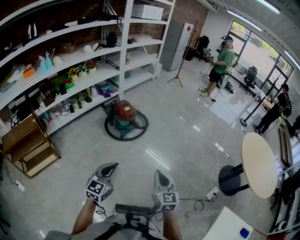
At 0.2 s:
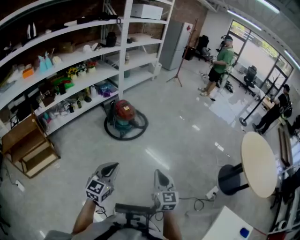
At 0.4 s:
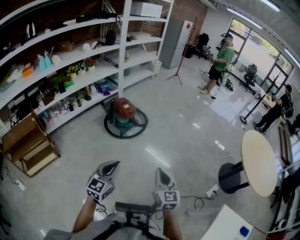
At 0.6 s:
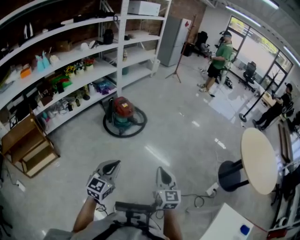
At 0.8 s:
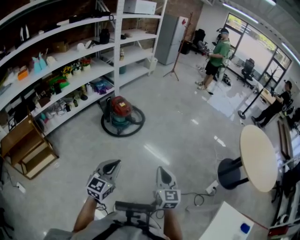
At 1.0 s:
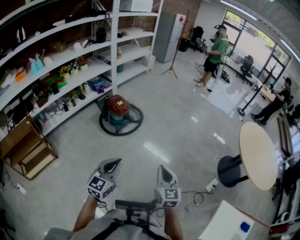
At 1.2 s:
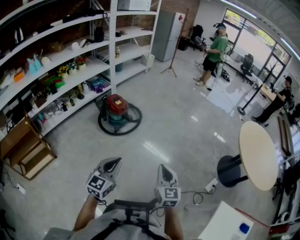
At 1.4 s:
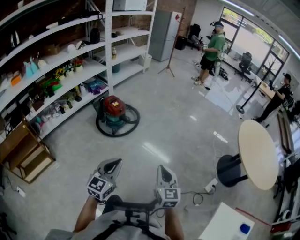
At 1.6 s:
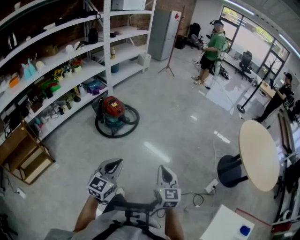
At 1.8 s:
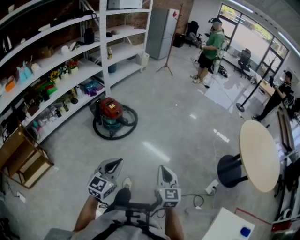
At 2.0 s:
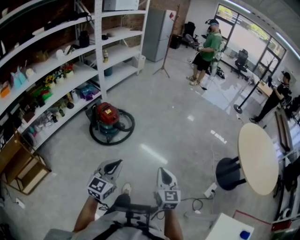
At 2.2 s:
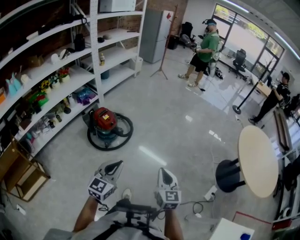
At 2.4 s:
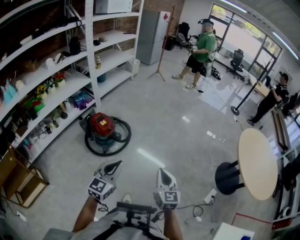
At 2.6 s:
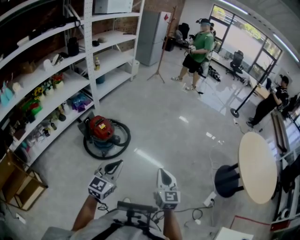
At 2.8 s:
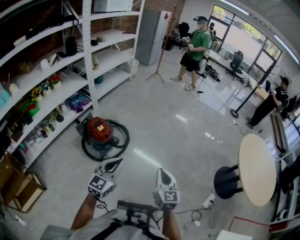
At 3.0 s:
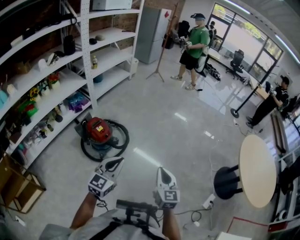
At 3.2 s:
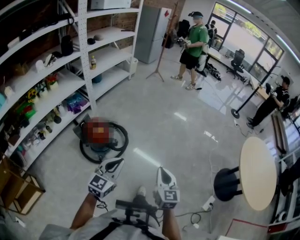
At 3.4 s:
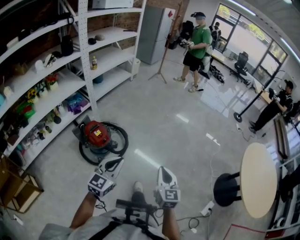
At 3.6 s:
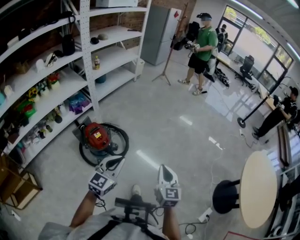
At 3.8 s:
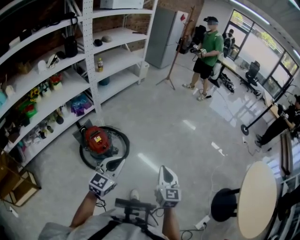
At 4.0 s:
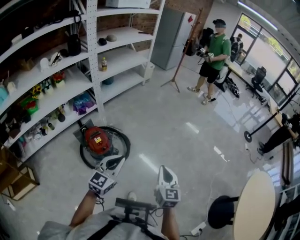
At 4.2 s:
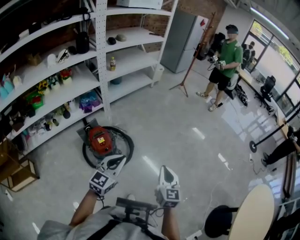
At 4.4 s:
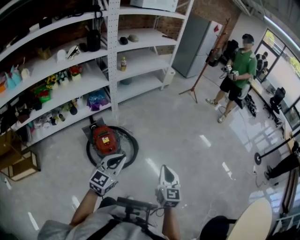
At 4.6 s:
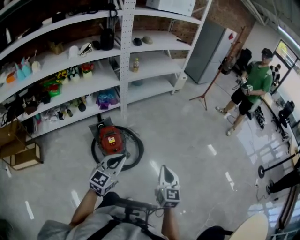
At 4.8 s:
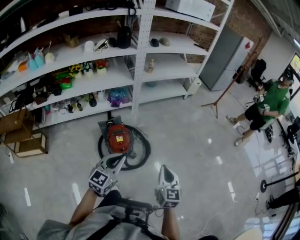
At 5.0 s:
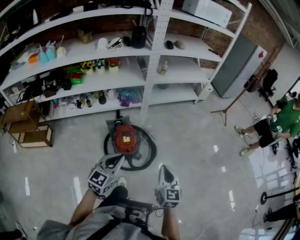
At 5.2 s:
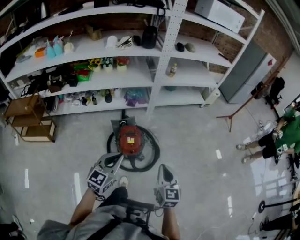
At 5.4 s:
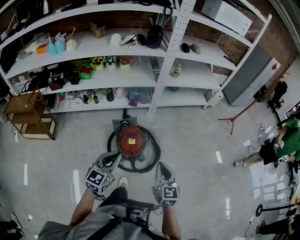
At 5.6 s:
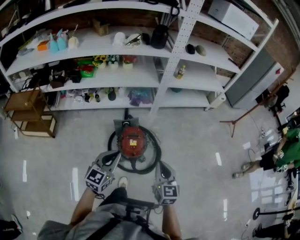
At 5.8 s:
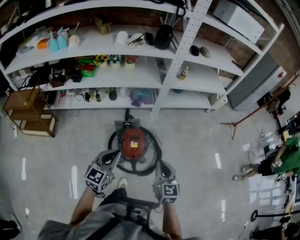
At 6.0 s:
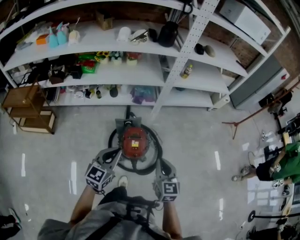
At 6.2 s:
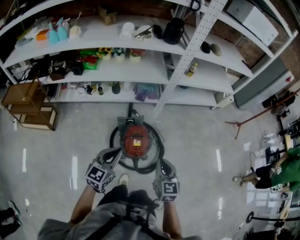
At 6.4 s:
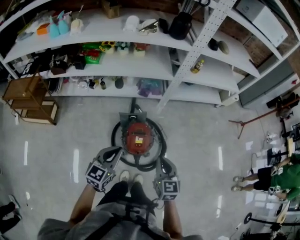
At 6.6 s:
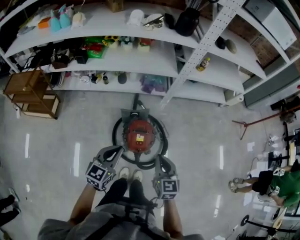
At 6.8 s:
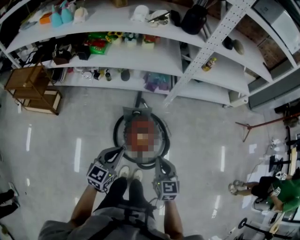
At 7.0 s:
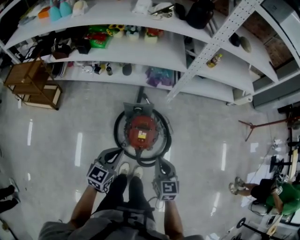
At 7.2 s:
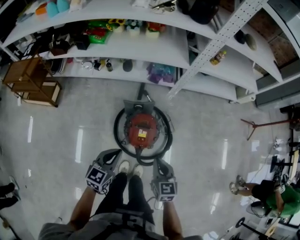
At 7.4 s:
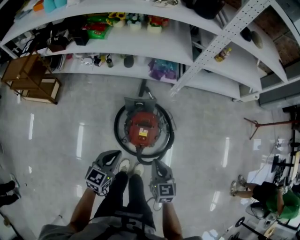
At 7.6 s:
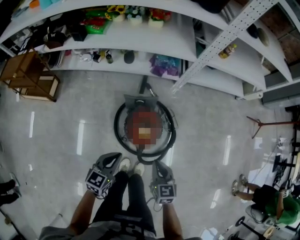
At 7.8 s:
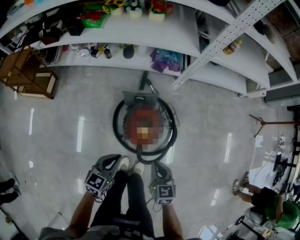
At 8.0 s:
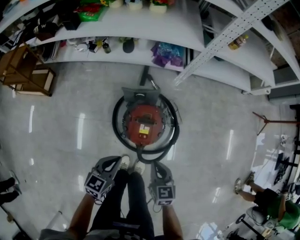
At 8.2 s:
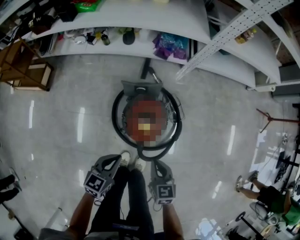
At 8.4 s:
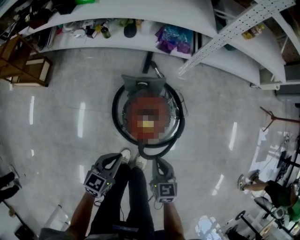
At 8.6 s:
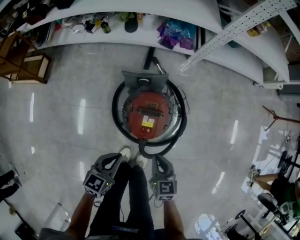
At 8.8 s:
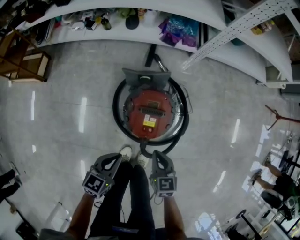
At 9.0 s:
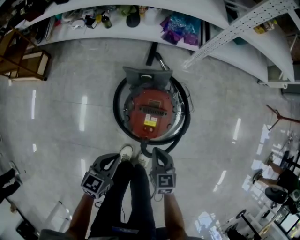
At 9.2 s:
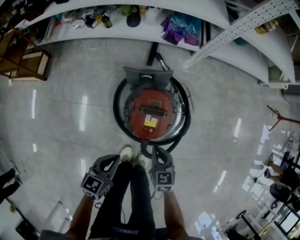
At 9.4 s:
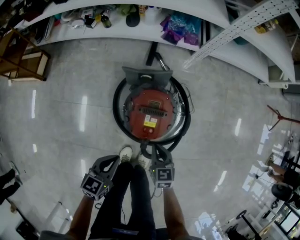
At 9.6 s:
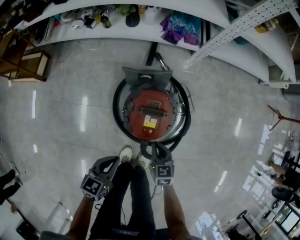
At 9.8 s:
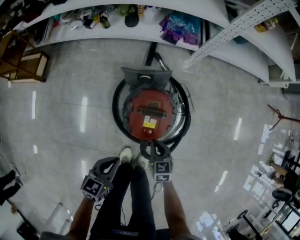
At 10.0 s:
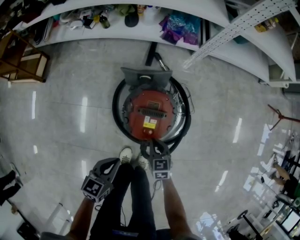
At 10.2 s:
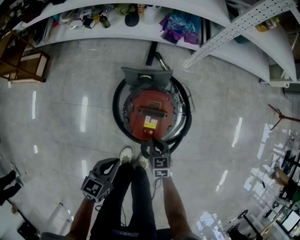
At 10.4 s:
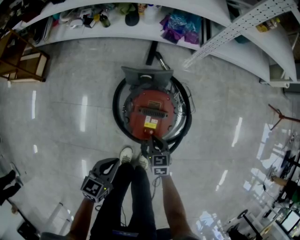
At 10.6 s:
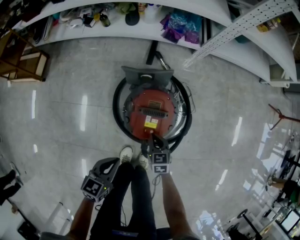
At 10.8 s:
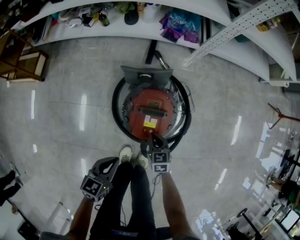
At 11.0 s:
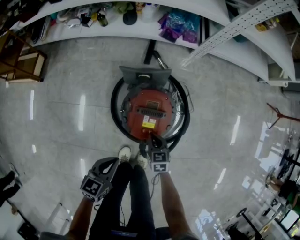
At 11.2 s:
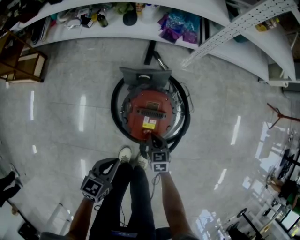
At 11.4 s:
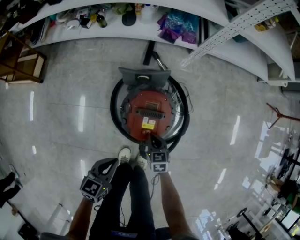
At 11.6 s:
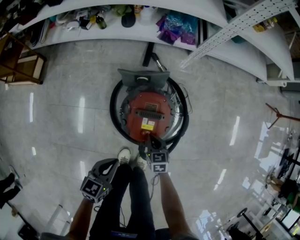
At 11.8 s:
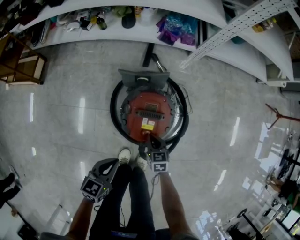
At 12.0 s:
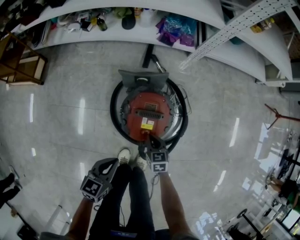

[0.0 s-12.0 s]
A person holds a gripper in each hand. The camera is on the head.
0.0 to 1.6 s: The grippers both shift to the right and forward by some 15 cm.
1.6 to 3.0 s: The two grippers go about 35 cm forward.
3.0 to 4.4 s: The grippers both shift forward by approximately 30 cm. The left gripper swivels about 20 degrees.
4.4 to 6.0 s: The left gripper shifts by approximately 30 cm, and swivels about 30 degrees. Meanwhile the right gripper shifts by roughly 35 cm, and changes its angle by about 30 degrees.
6.0 to 7.6 s: The left gripper shifts roughly 20 cm downward, and rotates roughly 20 degrees; the right gripper goes about 25 cm downward and forward, and turns by some 20 degrees.
7.6 to 9.0 s: Both grippers move downward, about 25 cm.
9.0 to 10.4 s: The right gripper travels downward by some 10 cm.
10.4 to 12.0 s: There are only small adjustments of the grippers.

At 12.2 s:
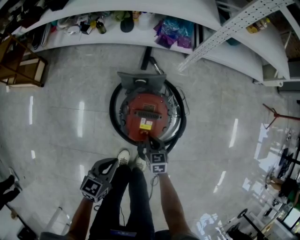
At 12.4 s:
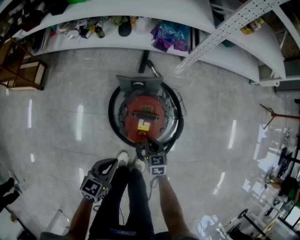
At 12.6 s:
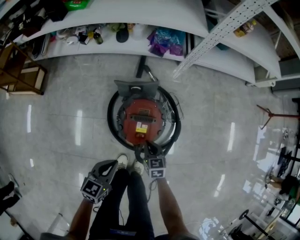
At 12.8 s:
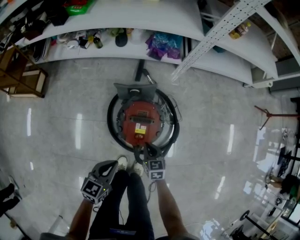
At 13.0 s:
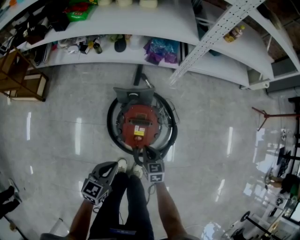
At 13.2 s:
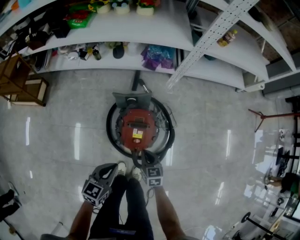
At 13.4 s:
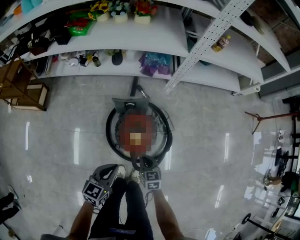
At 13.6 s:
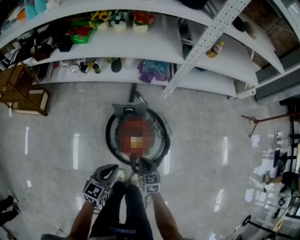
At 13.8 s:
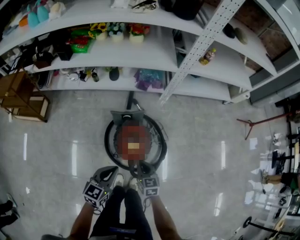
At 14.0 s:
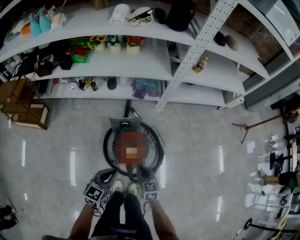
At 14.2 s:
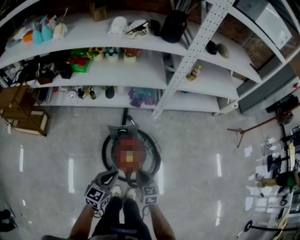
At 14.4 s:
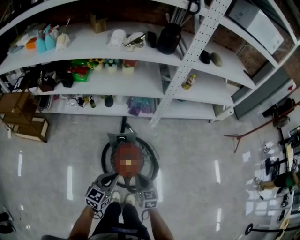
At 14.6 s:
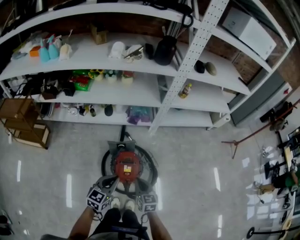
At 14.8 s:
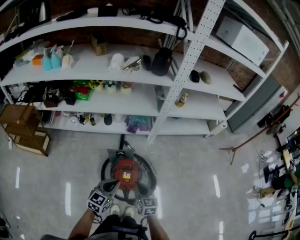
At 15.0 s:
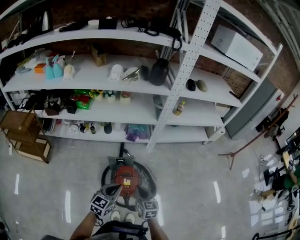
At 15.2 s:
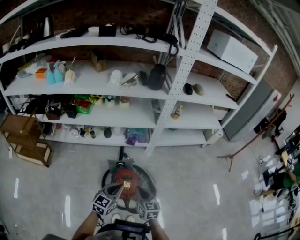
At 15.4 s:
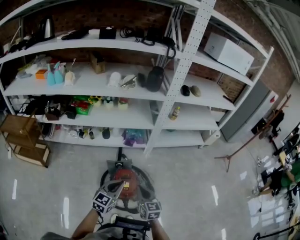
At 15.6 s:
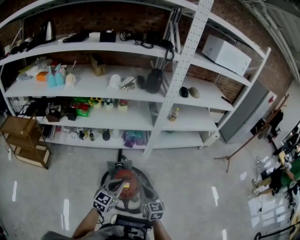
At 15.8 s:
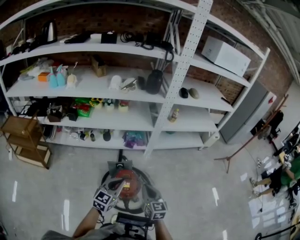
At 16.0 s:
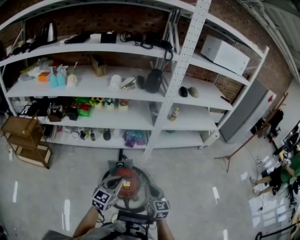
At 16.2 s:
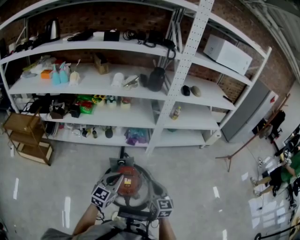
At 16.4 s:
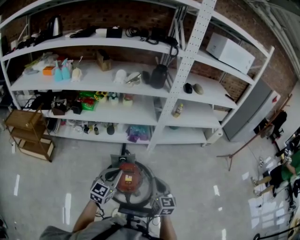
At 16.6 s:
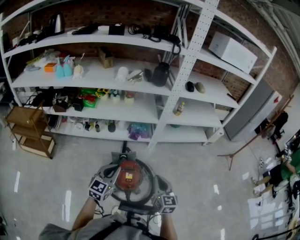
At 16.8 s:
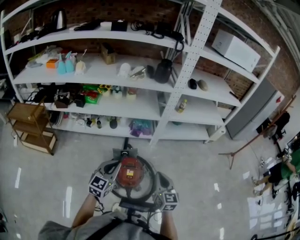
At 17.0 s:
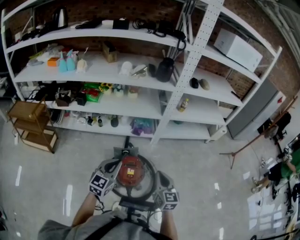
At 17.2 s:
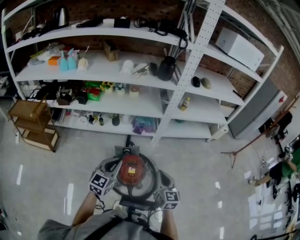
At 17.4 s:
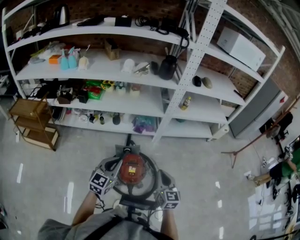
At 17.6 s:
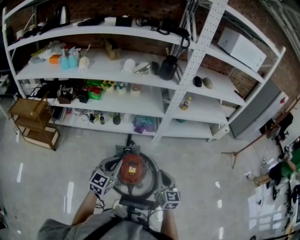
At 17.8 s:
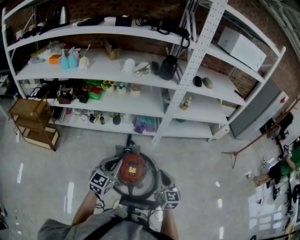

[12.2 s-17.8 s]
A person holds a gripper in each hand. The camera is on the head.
12.2 to 13.6 s: Both grippers travel together upward, roughly 20 cm.
13.6 to 15.0 s: Both grippers travel together upward, roughly 25 cm.
15.0 to 16.4 s: The right gripper heads upward and to the right, covering some 15 cm. The left gripper travels upward by approximately 10 cm.
16.4 to 17.8 s: The grippers move only a little.

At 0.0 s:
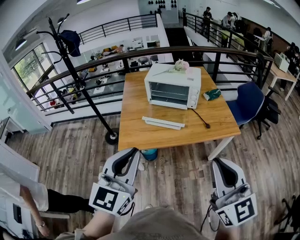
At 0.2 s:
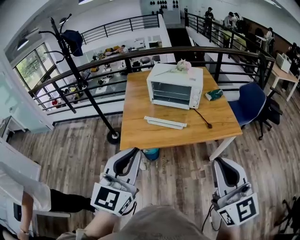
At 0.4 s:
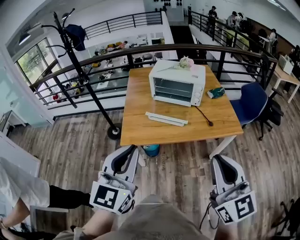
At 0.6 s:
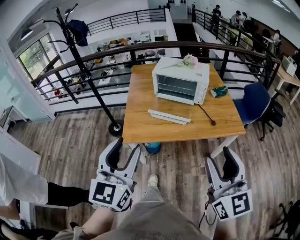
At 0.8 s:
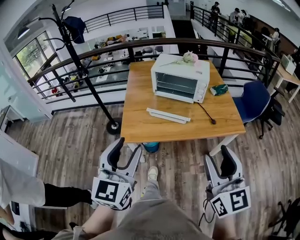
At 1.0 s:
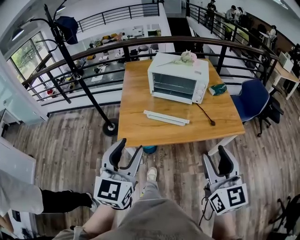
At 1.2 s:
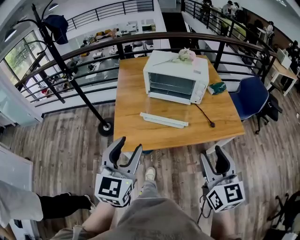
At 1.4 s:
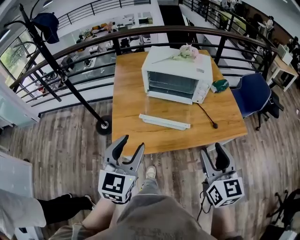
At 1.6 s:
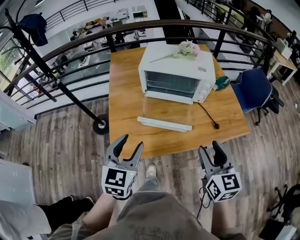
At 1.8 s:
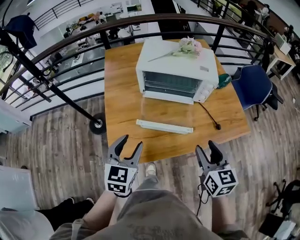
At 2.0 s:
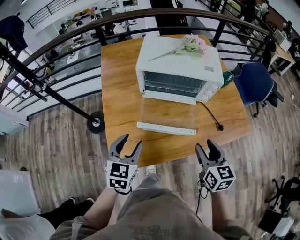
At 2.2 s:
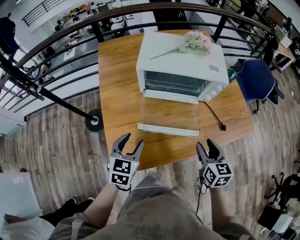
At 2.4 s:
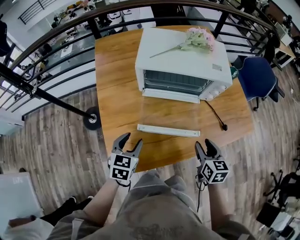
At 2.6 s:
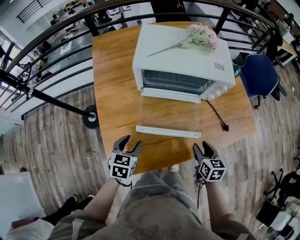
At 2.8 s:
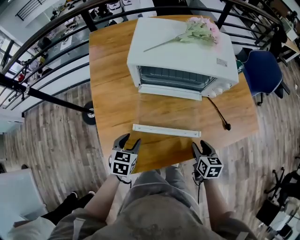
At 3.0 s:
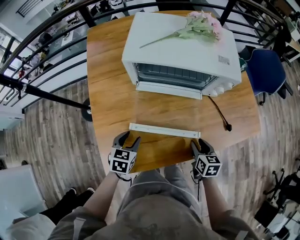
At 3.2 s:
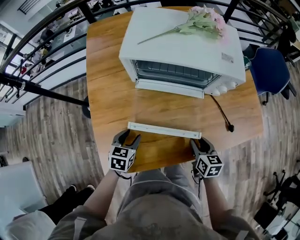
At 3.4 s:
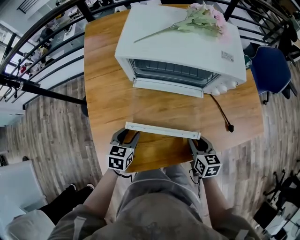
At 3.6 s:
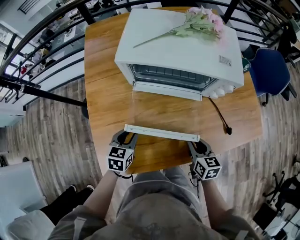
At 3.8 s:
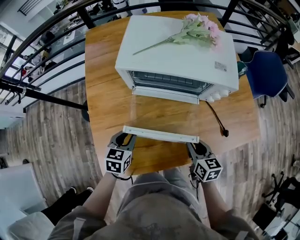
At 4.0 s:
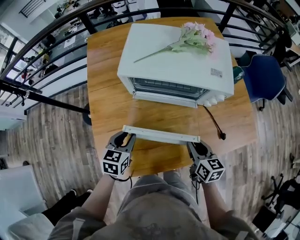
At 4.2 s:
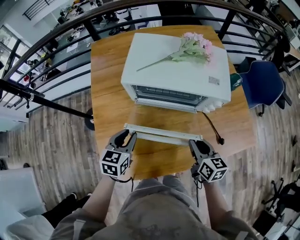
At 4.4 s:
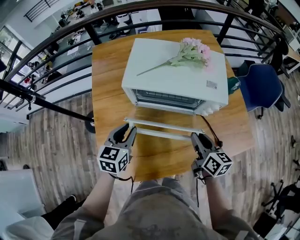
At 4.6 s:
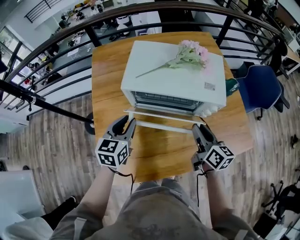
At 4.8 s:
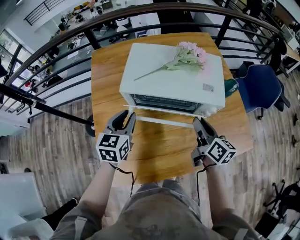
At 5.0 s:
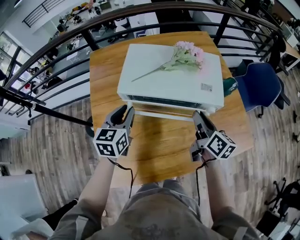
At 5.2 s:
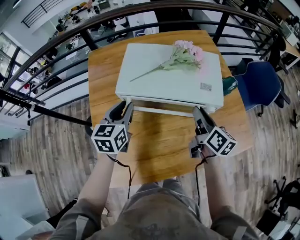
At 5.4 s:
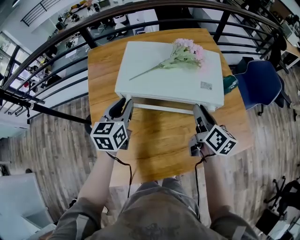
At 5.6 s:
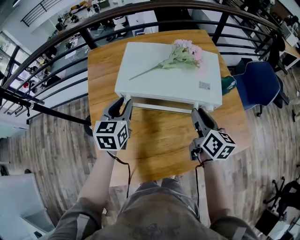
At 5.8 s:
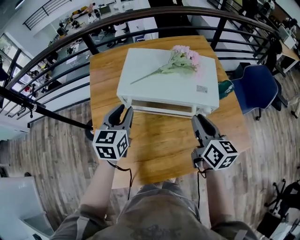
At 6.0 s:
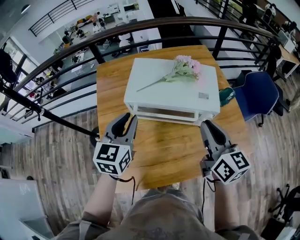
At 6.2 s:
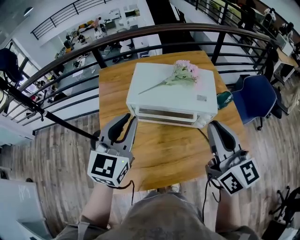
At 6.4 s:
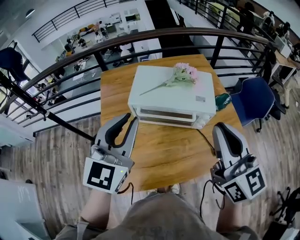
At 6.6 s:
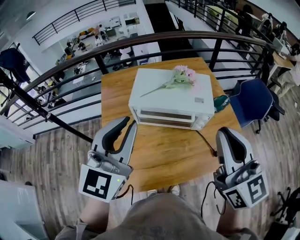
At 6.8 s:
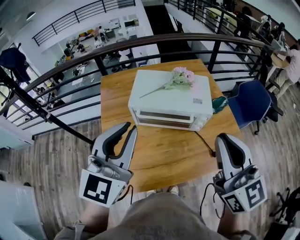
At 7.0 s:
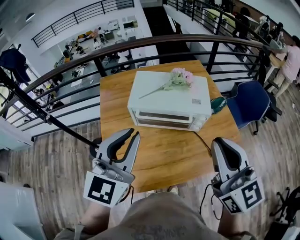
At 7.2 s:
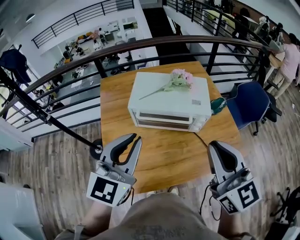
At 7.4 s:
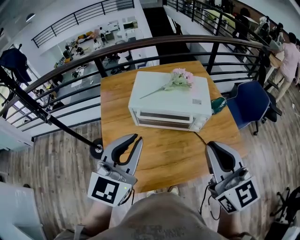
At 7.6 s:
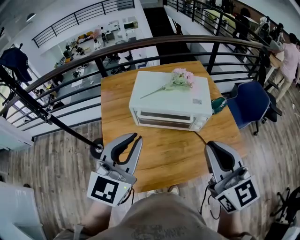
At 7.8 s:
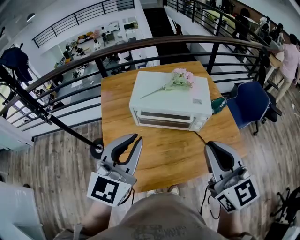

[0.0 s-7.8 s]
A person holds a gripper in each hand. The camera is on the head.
0.0 to 1.6 s: Both grippers move forward and downward, approximately 30 cm. The left gripper rotates approximately 20 degrees, and opens up, while the right gripper rotates about 30 degrees, and opens.
1.6 to 3.2 s: Both grippers move downward and forward, about 35 cm. The left gripper turns by some 30 degrees; the right gripper turns by some 30 degrees.
3.2 to 4.6 s: Both grippers move upward and forward, approximately 25 cm. The right gripper changes its angle by roughly 30 degrees. The left gripper changes its angle by approximately 20 degrees, and closes its fingers.
4.6 to 6.2 s: Both grippers move upward, approximately 20 cm. The left gripper changes its angle by some 30 degrees. The right gripper swivels about 30 degrees.
6.2 to 7.8 s: Both grippers travel together backward, some 10 cm.
